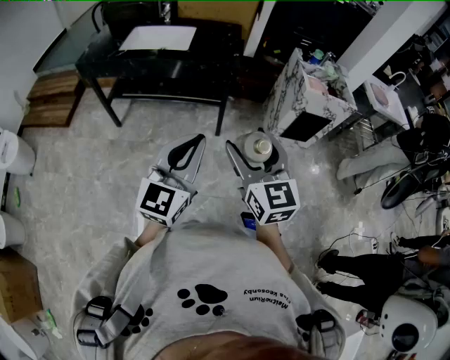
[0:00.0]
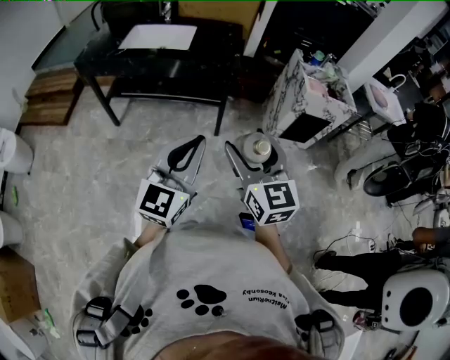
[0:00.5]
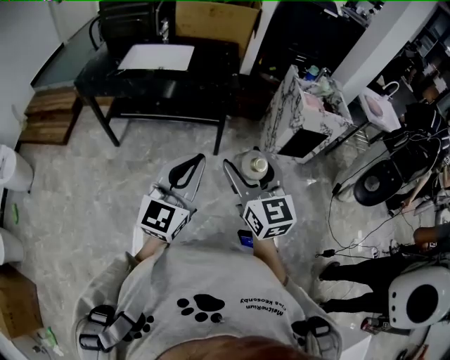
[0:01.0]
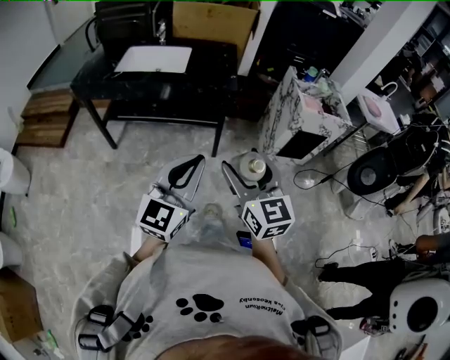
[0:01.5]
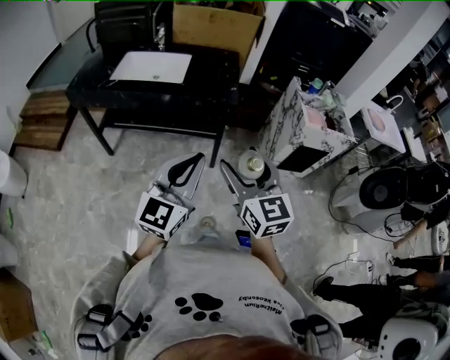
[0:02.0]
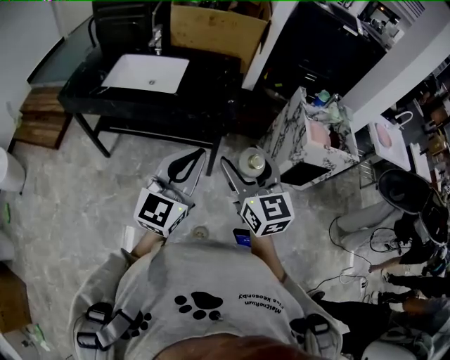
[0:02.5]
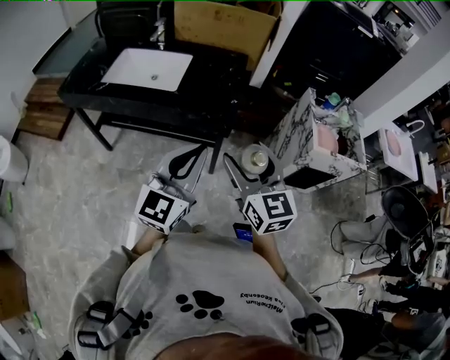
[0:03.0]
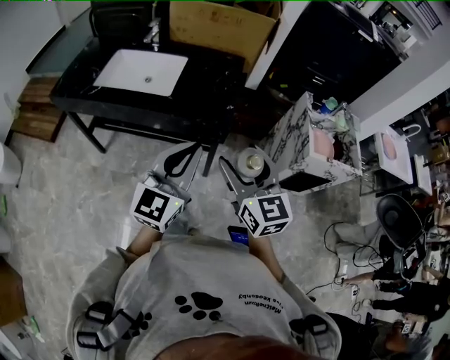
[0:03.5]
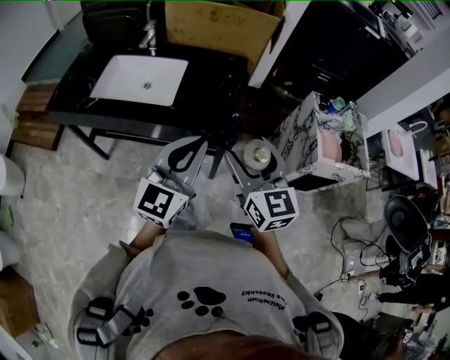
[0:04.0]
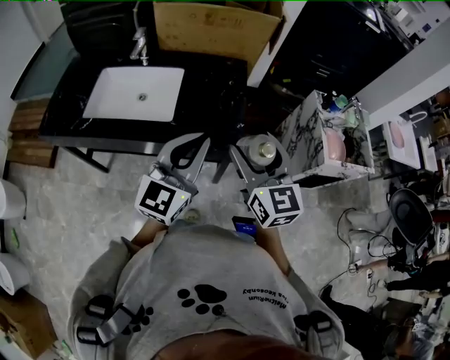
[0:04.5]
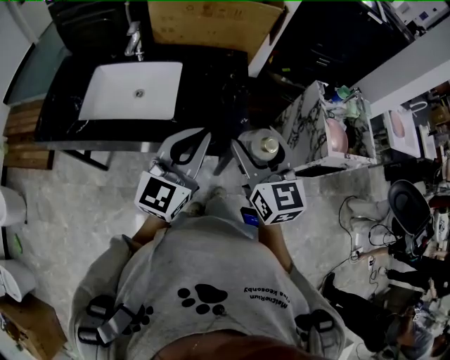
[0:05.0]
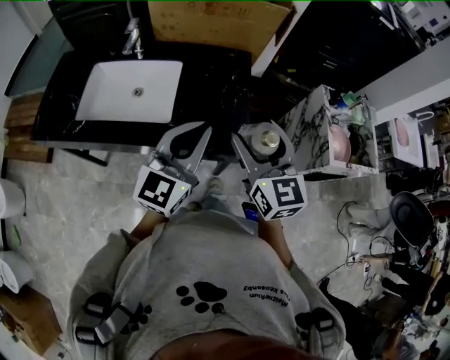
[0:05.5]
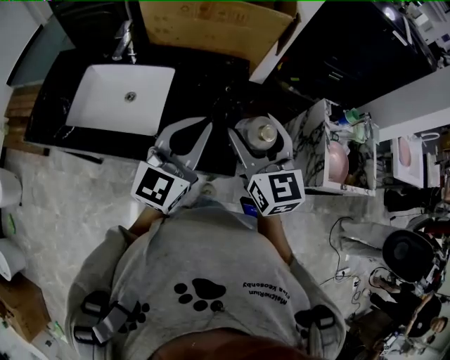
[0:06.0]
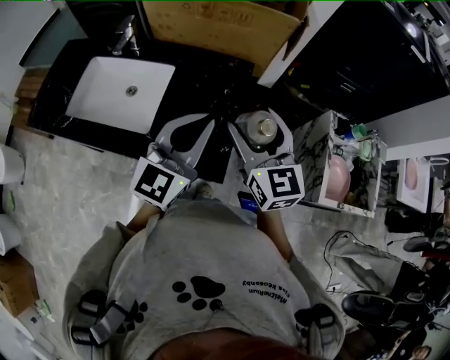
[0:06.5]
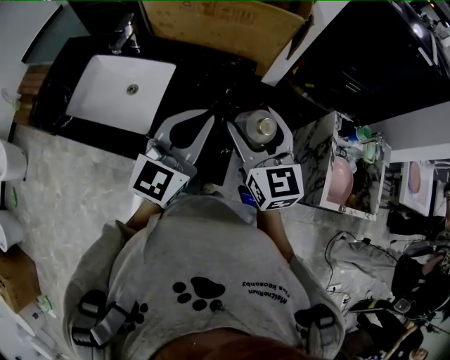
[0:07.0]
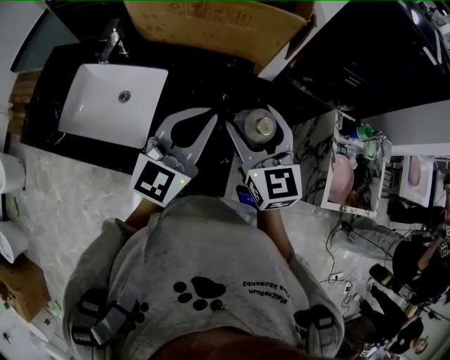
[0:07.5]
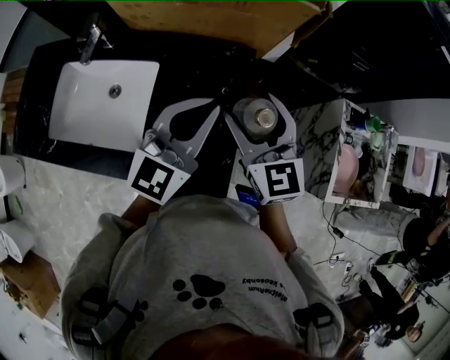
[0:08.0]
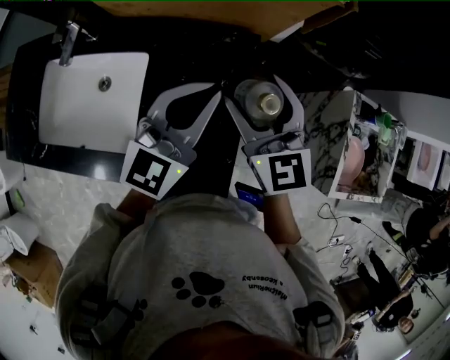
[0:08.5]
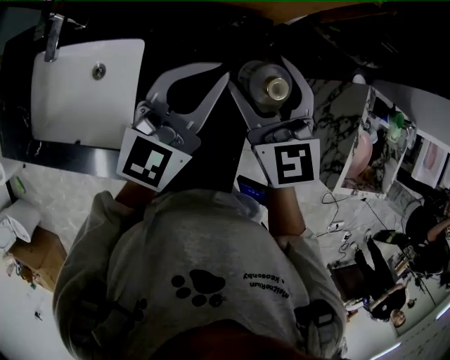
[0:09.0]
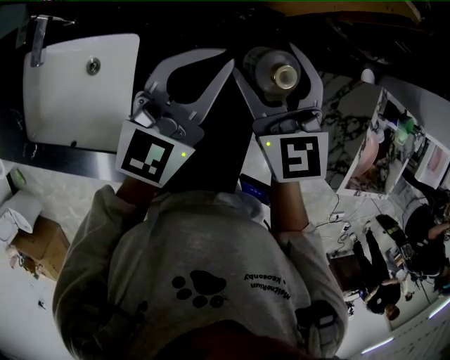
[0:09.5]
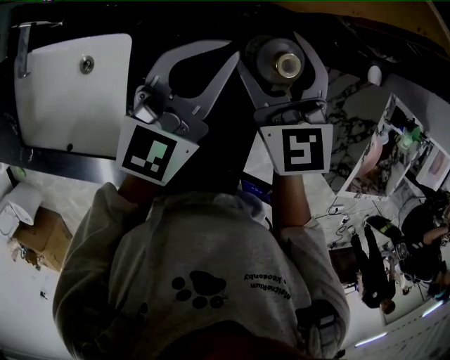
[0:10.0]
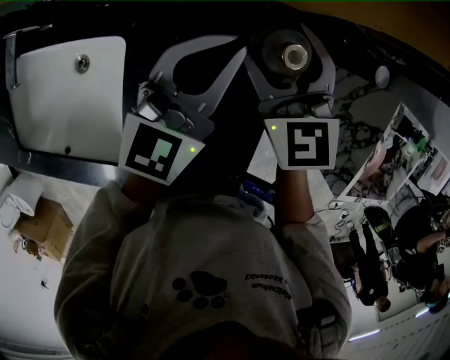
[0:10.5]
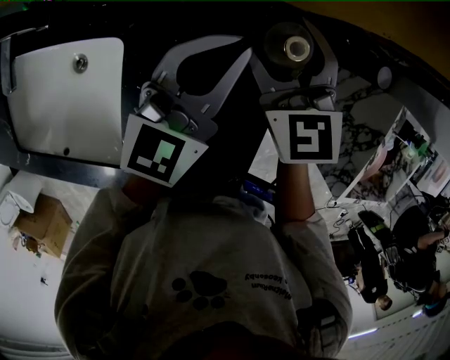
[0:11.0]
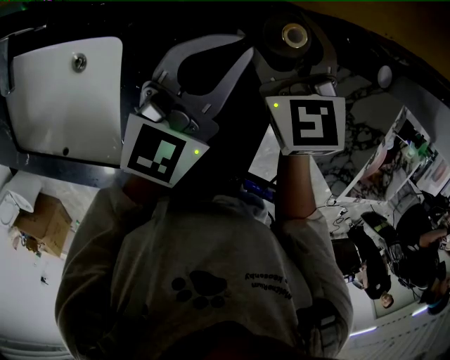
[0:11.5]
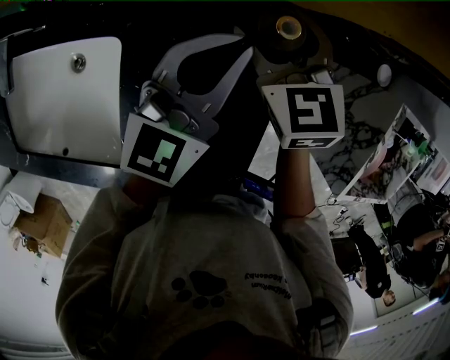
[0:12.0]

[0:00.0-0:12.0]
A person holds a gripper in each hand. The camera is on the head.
0:00.0 to 0:02.0: The grippers both shift forward by about 15 cm.
0:02.0 to 0:04.0: The grippers both shift forward by about 30 cm.
0:04.0 to 0:06.0: The two grippers go some 25 cm forward.
0:06.0 to 0:08.0: The two grippers go roughly 15 cm forward.
0:08.0 to 0:10.0: Both grippers move forward and downward, approximately 20 cm.
0:10.0 to 0:12.0: The right gripper goes approximately 10 cm downward and forward.

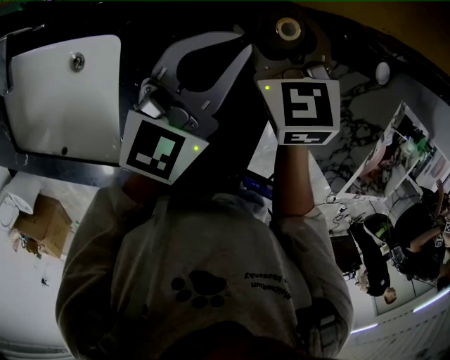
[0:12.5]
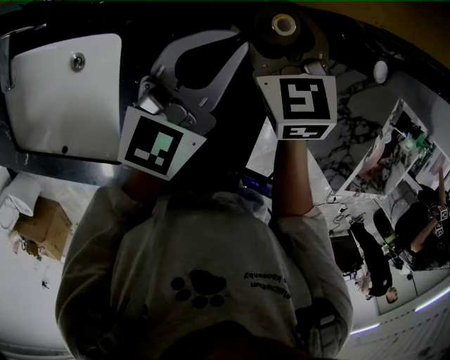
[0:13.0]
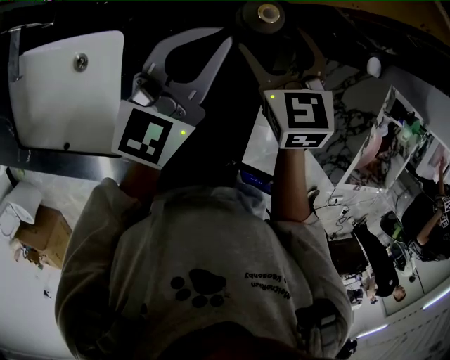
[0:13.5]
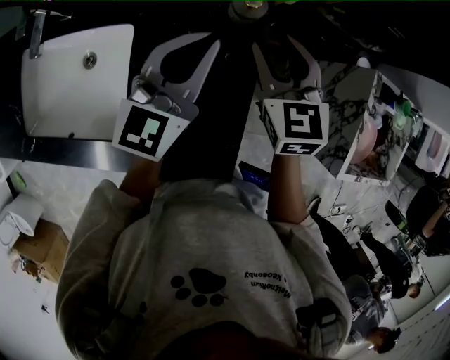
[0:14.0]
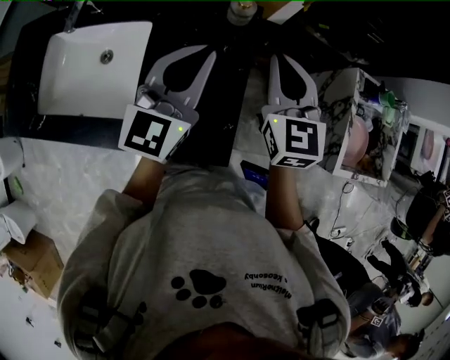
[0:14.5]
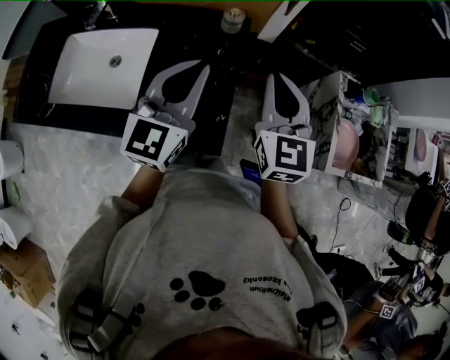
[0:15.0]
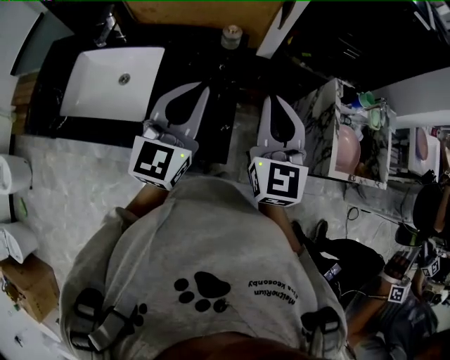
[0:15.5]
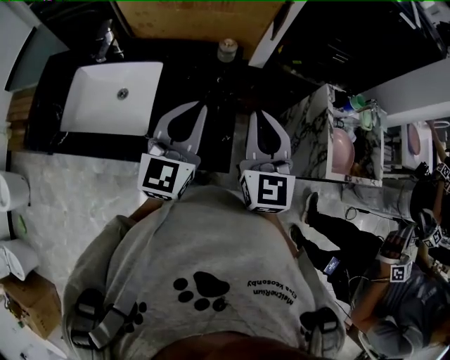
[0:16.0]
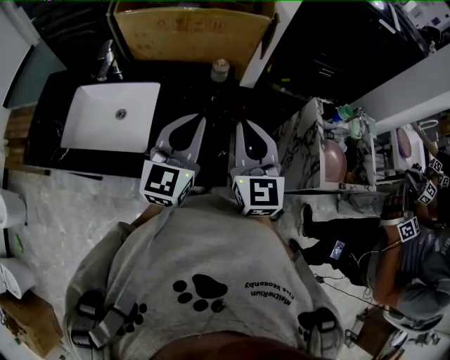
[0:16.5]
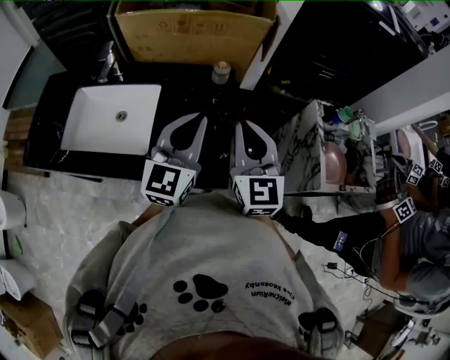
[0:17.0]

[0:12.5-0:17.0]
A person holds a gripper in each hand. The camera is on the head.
0:12.5 to 0:14.5: The right gripper travels backward, upward and to the right by approximately 25 cm, rotates roughly 20 degrees, and closes its fingers. Meanwhile the left gripper moves backward and upward, about 20 cm.
0:14.5 to 0:17.0: Both grippers move backward and upward, about 15 cm.

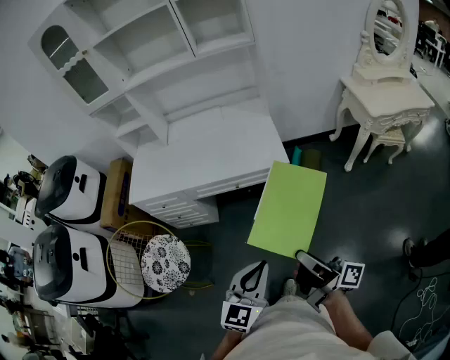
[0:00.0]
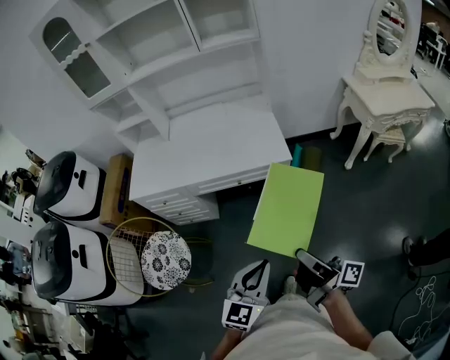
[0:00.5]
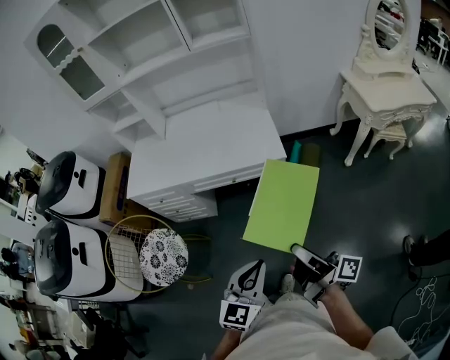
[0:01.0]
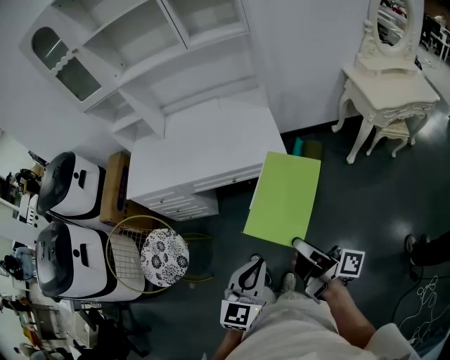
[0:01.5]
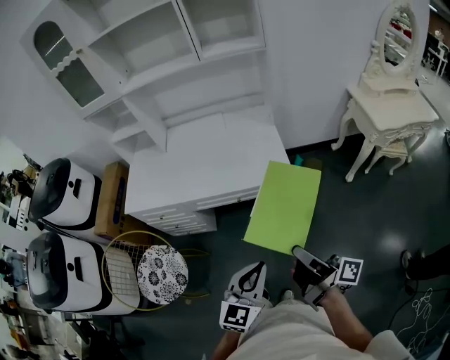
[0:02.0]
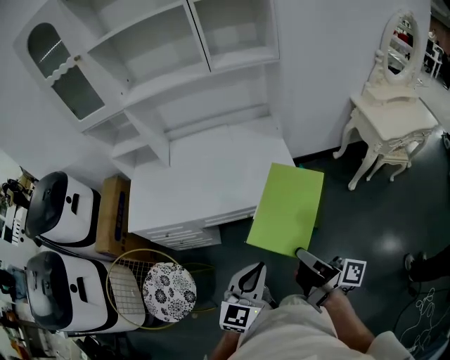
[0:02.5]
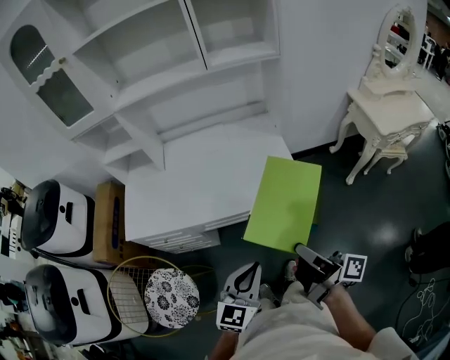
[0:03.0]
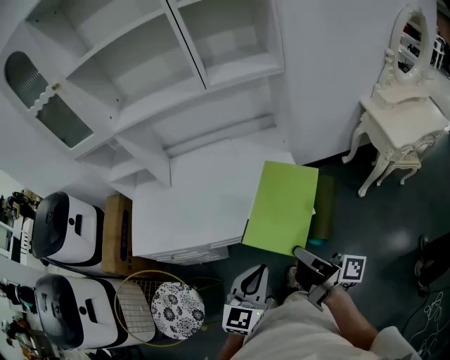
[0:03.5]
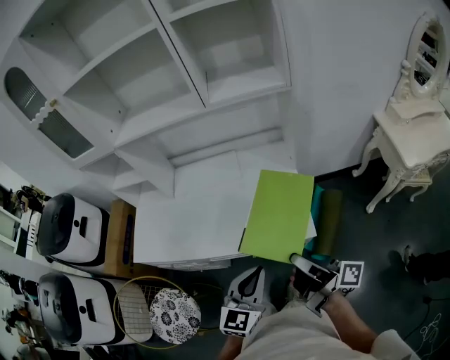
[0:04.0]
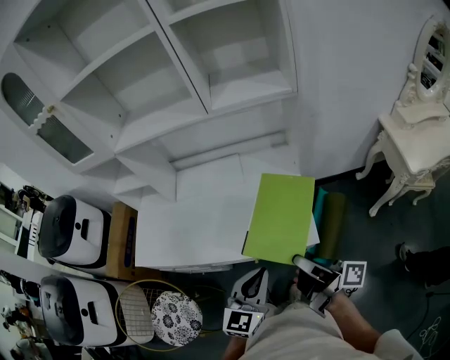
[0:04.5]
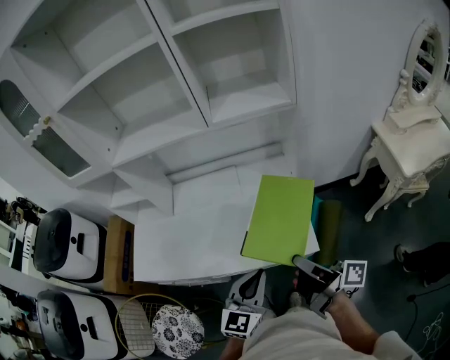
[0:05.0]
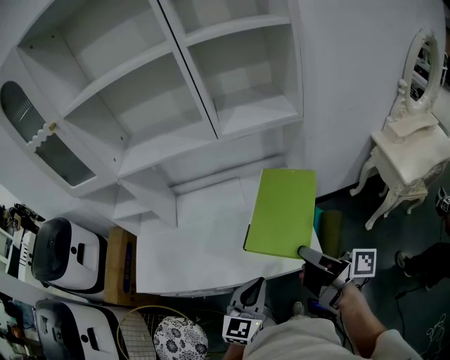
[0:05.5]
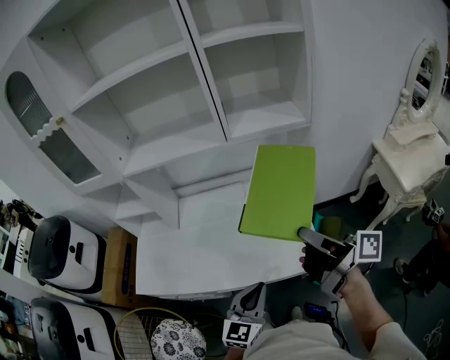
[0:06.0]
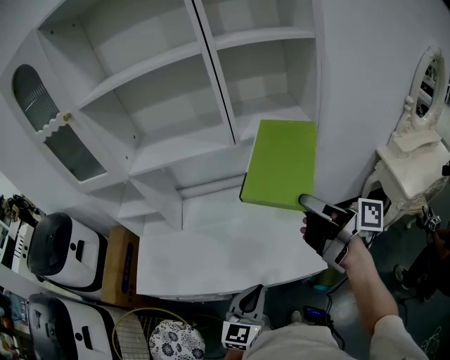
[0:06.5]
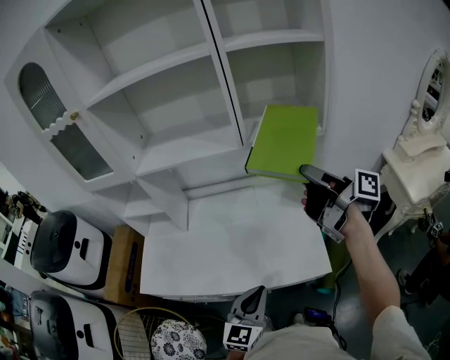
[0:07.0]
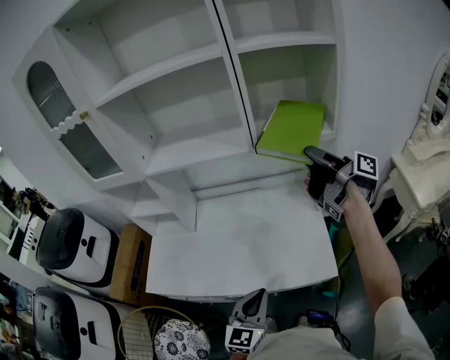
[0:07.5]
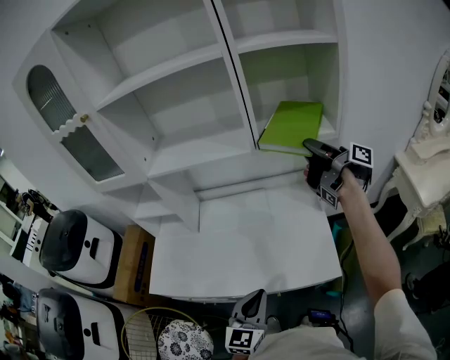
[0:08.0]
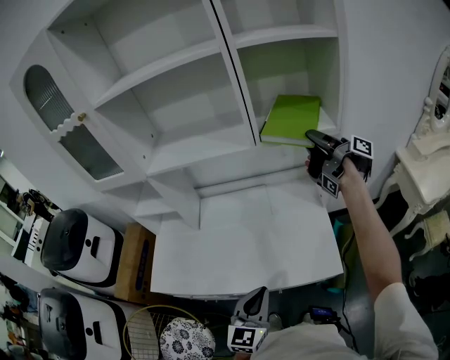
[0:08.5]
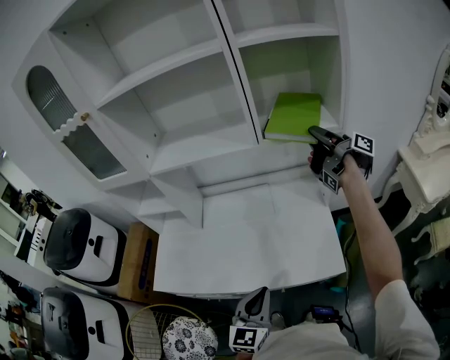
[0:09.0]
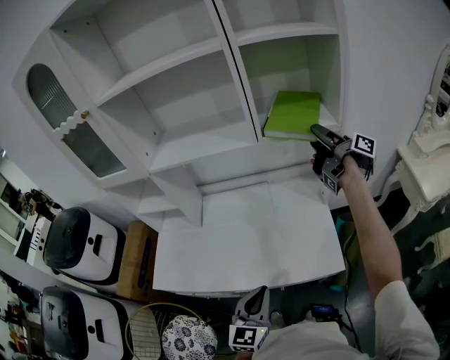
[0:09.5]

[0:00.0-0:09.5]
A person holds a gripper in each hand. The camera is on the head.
0:00.0 to 0:02.0: Both grippers move forward, roughly 10 cm.
0:02.0 to 0:04.0: Both grippers travel together forward, about 25 cm.
0:04.0 to 0:05.5: The left gripper heads forward, covering approximately 5 cm. The right gripper heads forward and upward, covering about 10 cm.
0:05.5 to 0:07.5: The right gripper shifts some 30 cm forward and upward, while the left gripper is displaced to the left by approximately 5 cm.
0:07.5 to 0:09.5: The right gripper is displaced forward by roughly 5 cm, and opens.

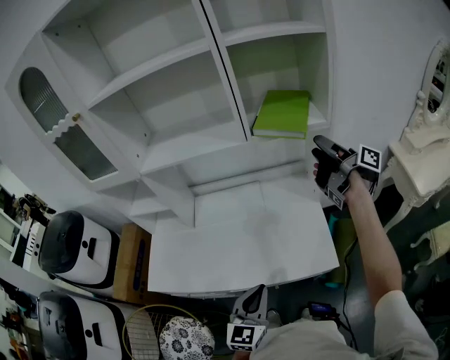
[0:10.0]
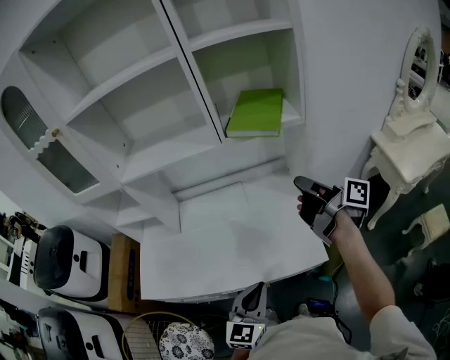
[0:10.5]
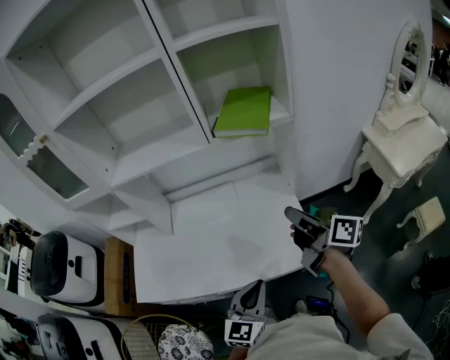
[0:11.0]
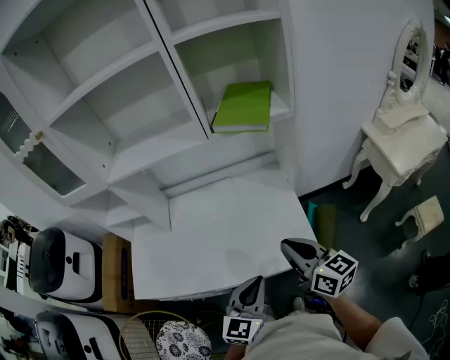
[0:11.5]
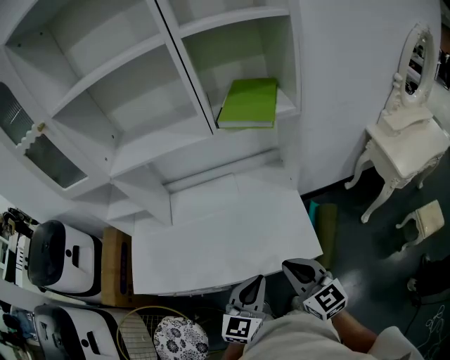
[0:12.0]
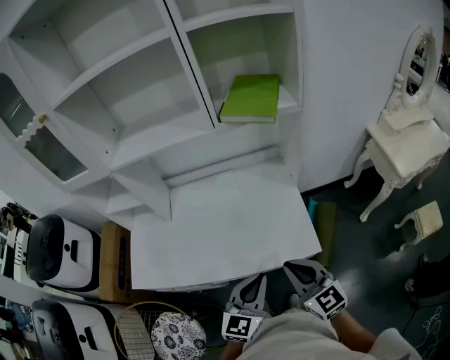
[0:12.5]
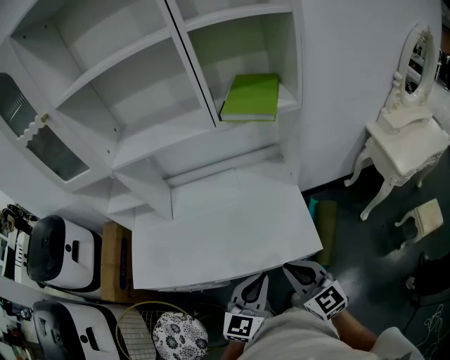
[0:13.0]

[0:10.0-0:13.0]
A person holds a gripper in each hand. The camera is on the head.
0:10.0 to 0:11.5: The right gripper heads backward and downward, covering roughly 25 cm, rotates around the line of its fingers by some 50 degrees, counterclockwise from behind, and closes. Meanwhile the left gripper is displaced to the right by roughly 5 cm.
0:11.5 to 0:13.0: The right gripper shifts approximately 10 cm backward and downward, and rotates about 30 degrees.
